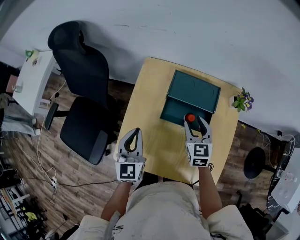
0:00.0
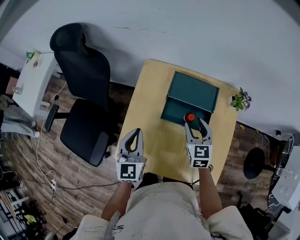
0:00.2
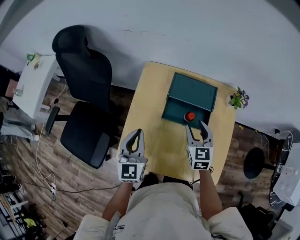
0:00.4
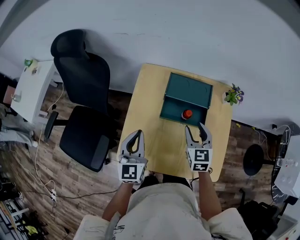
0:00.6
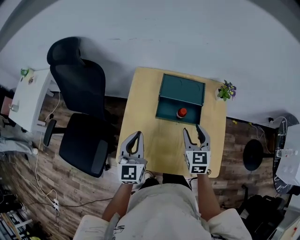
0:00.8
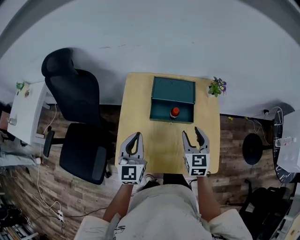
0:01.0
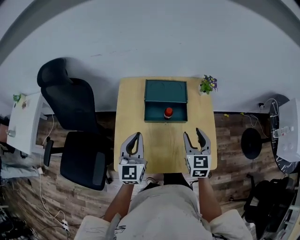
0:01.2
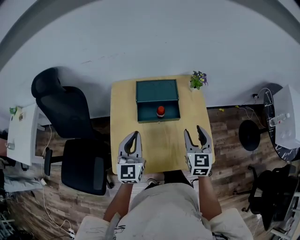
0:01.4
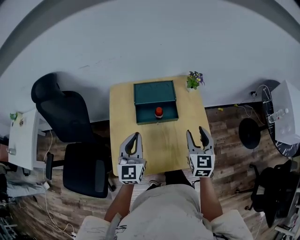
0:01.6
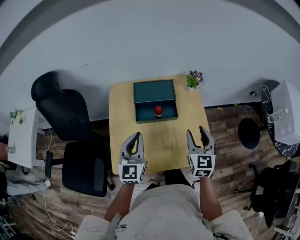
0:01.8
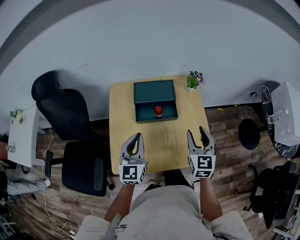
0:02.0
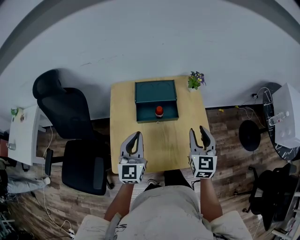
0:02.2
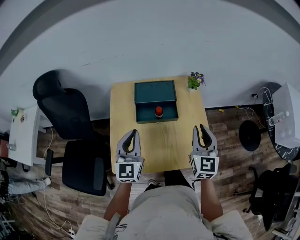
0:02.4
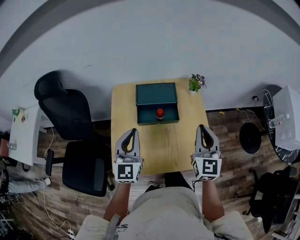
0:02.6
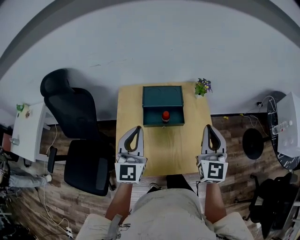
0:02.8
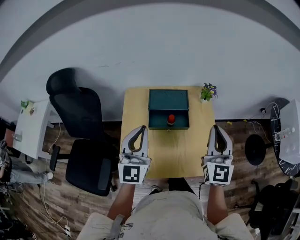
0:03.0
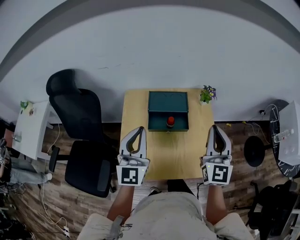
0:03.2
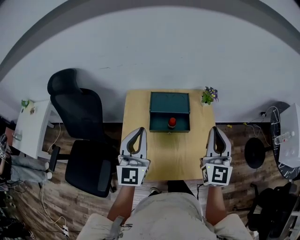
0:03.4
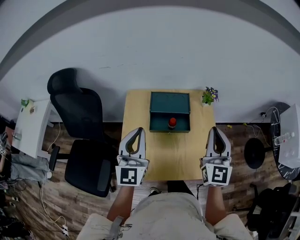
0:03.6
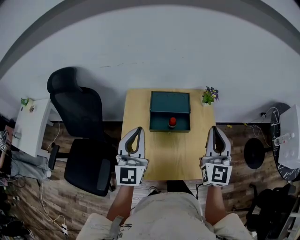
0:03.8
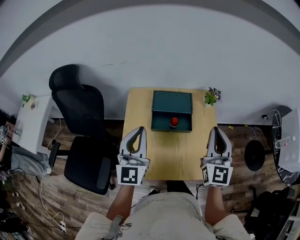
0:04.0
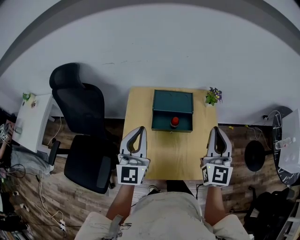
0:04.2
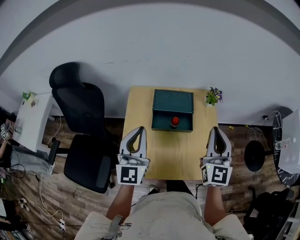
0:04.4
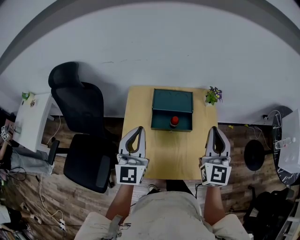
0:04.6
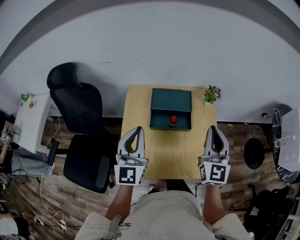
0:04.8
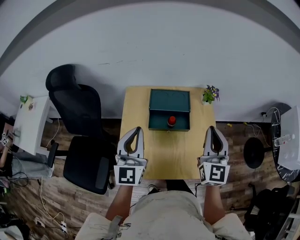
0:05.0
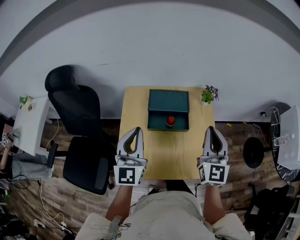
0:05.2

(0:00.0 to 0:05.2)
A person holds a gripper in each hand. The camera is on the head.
0:00.0 - 0:01.8: The left gripper moves some 15 cm, and changes its angle by roughly 30 degrees, while the right gripper shifts by approximately 25 cm, and changes its angle by about 30 degrees.
0:01.8 - 0:03.4: Both grippers move upward, approximately 15 cm. The right gripper swivels some 20 degrees, and closes up.
0:03.4 - 0:05.2: The grippers stay close to where they were, moving slightly.

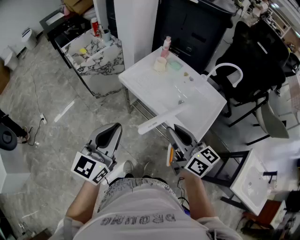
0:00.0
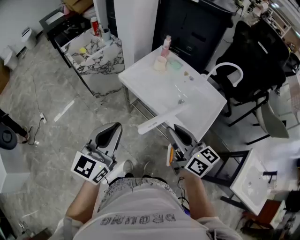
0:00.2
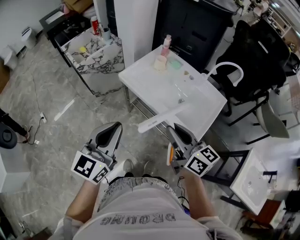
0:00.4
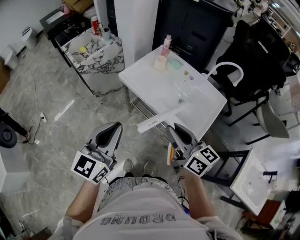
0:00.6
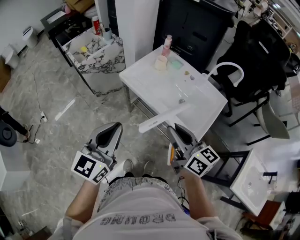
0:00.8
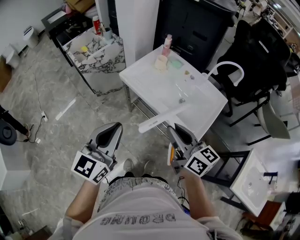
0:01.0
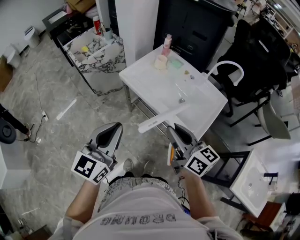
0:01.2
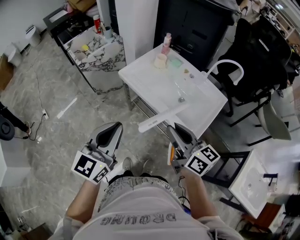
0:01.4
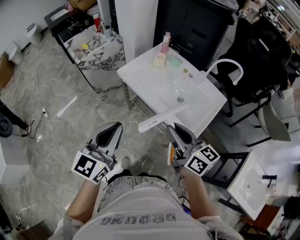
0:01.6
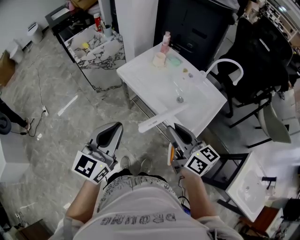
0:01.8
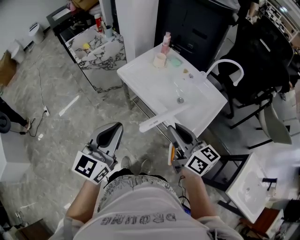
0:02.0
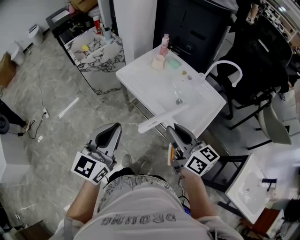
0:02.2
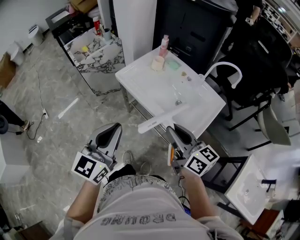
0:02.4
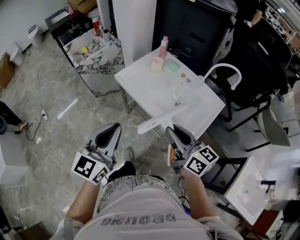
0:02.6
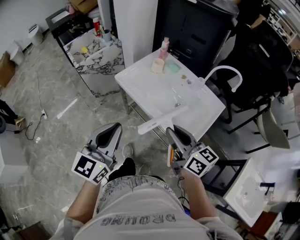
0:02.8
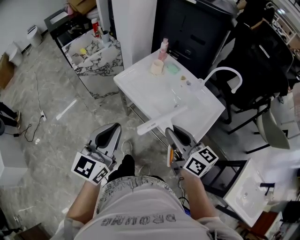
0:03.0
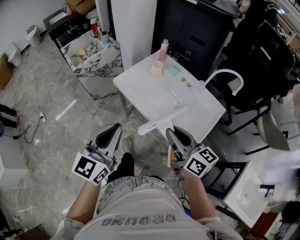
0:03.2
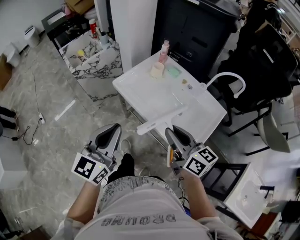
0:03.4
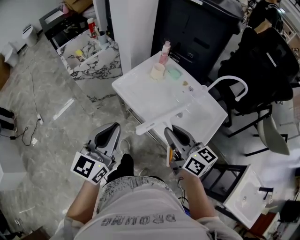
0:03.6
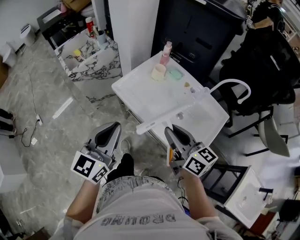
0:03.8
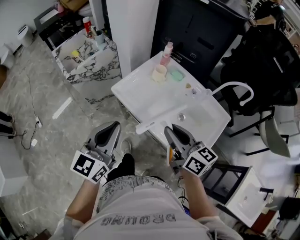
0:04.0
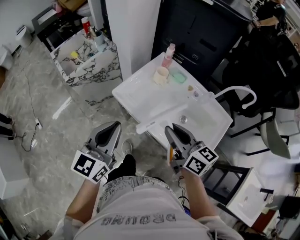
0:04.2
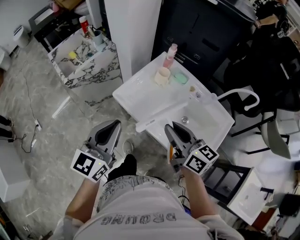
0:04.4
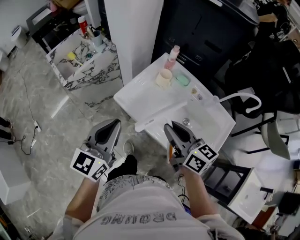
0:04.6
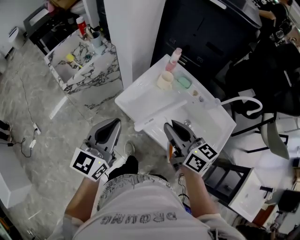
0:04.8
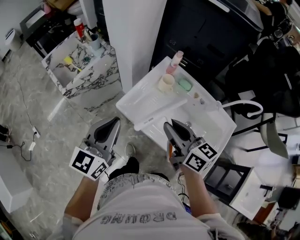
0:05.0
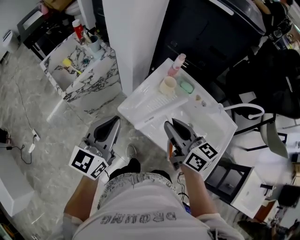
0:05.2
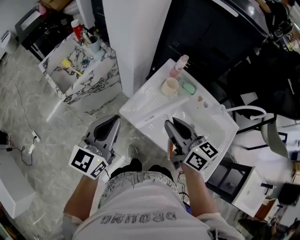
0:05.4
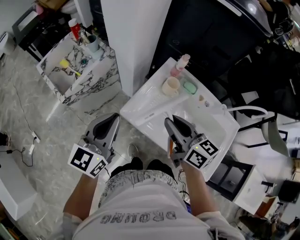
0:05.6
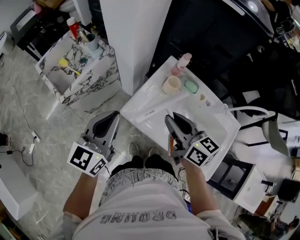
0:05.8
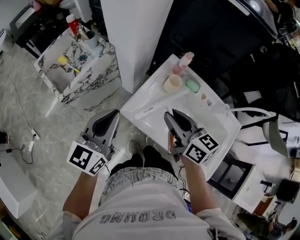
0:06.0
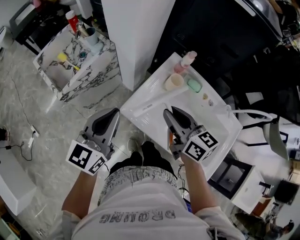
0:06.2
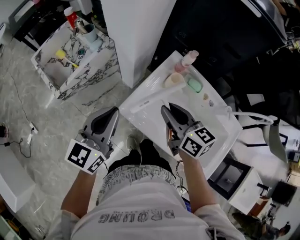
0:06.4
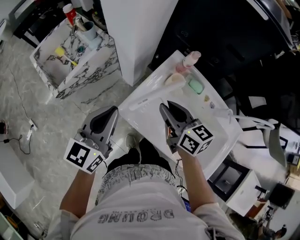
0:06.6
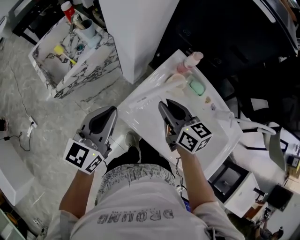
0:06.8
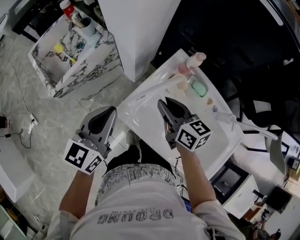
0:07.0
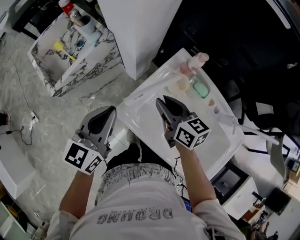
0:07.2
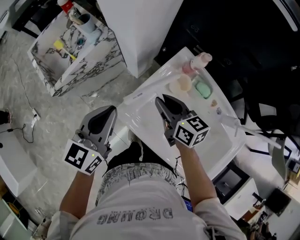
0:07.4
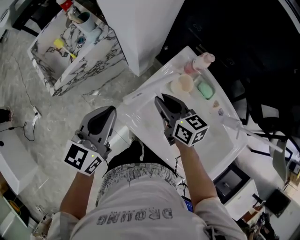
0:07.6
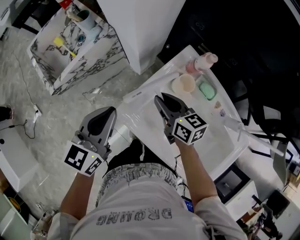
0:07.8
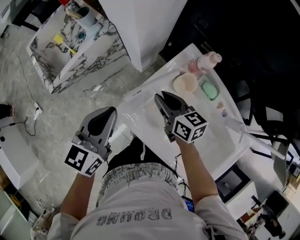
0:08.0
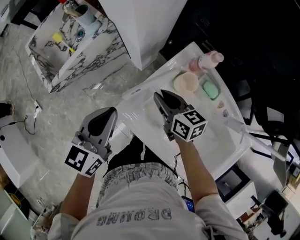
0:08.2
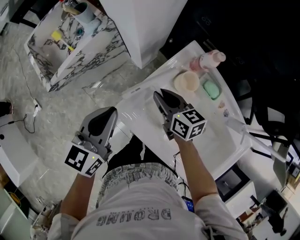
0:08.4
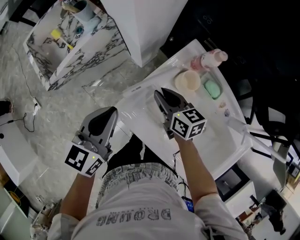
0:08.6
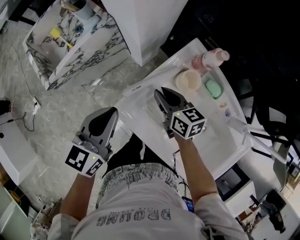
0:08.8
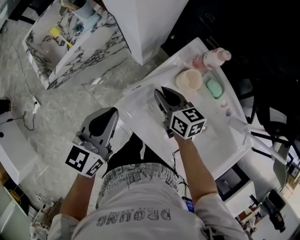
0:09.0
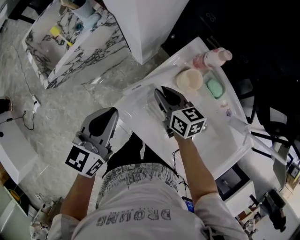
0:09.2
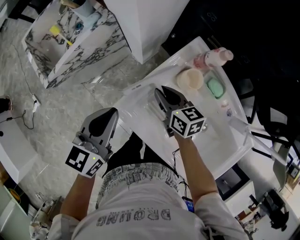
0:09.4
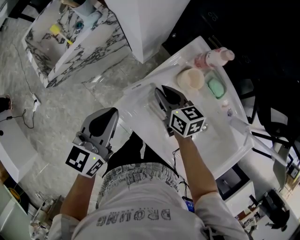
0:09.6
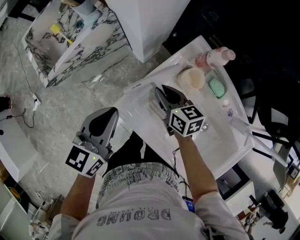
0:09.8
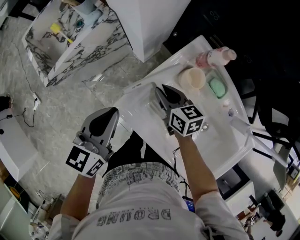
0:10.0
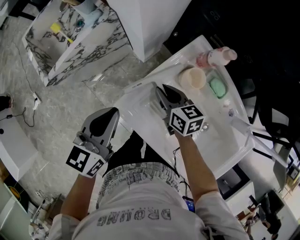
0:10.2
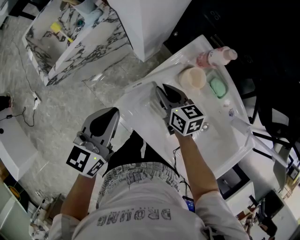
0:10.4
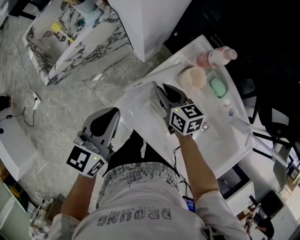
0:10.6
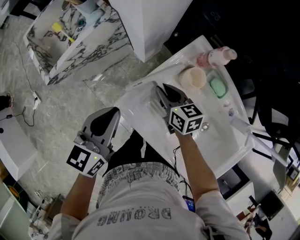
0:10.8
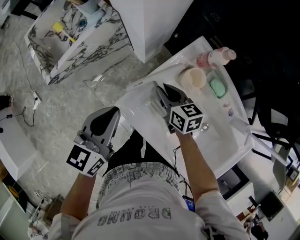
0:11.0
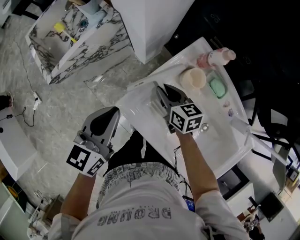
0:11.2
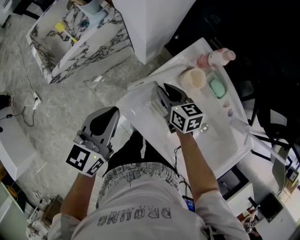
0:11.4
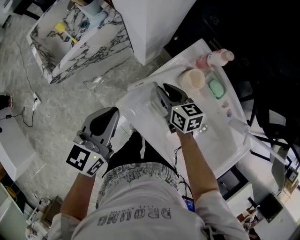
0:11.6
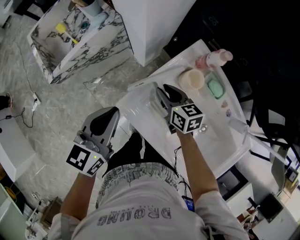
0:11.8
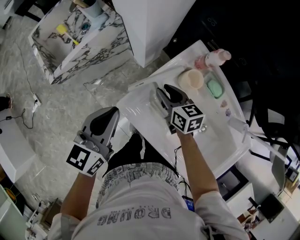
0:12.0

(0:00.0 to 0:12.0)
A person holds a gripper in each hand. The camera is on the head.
0:00.0 - 0:01.6: The grippers make only small movements.
0:01.6 - 0:03.0: The grippers make only small movements.
0:03.0 - 0:04.4: Both grippers move forward, approximately 20 cm.
0:04.4 - 0:06.0: Both grippers travel together forward and to the left, about 20 cm.
0:06.0 - 0:07.6: The right gripper is displaced downward and forward by about 20 cm. Meanwhile the left gripper heads downward and forward, covering some 10 cm.
0:07.6 - 0:09.0: The right gripper travels downward by roughly 5 cm.
0:09.0 - 0:12.0: The grippers stay close to where they were, moving slightly.

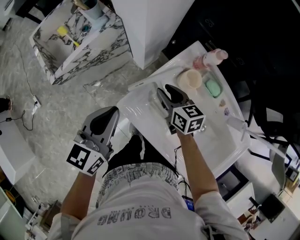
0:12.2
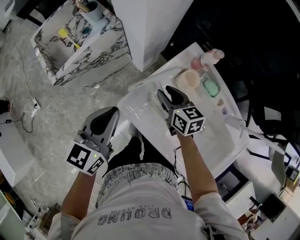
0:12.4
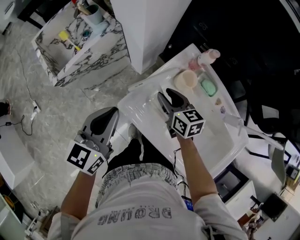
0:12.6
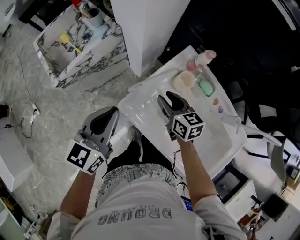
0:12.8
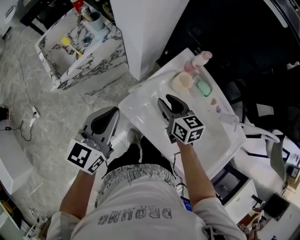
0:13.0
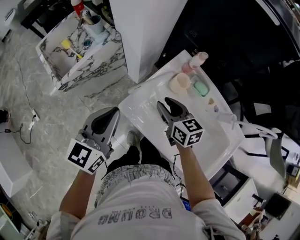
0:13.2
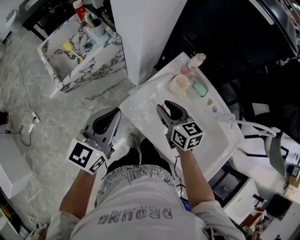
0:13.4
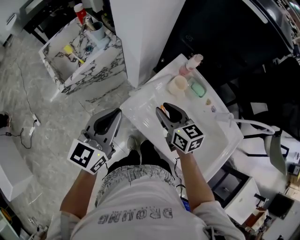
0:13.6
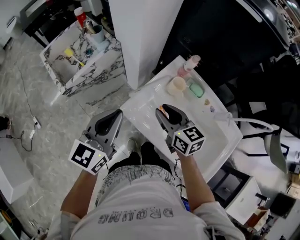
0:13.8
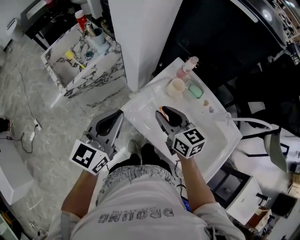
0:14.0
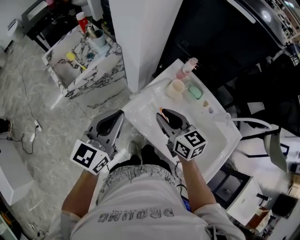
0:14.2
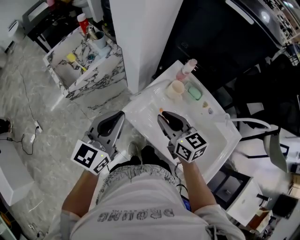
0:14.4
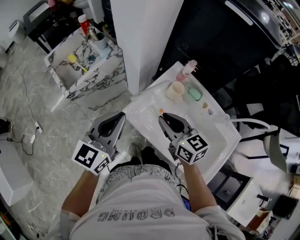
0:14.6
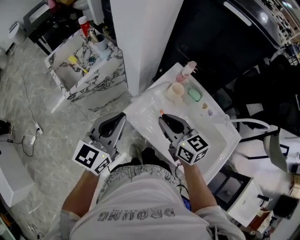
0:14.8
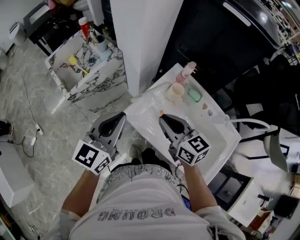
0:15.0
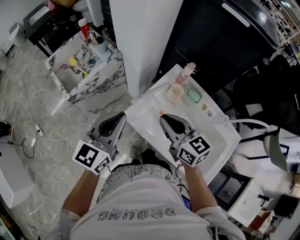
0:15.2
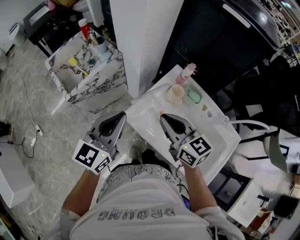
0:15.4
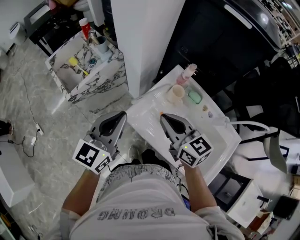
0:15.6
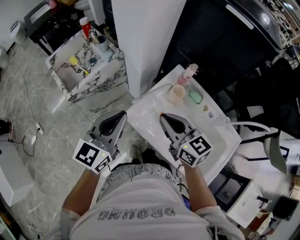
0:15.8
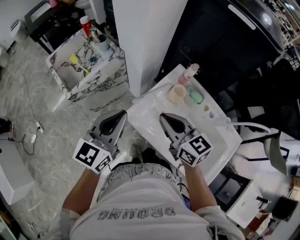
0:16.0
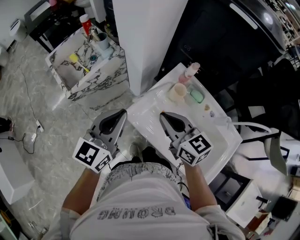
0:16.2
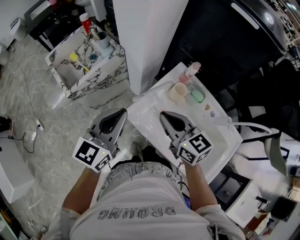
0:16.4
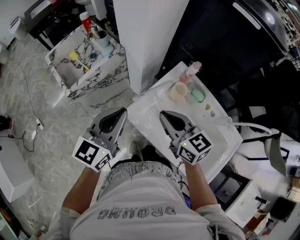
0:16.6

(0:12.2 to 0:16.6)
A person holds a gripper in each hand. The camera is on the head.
0:12.2 - 0:13.6: The right gripper travels upward and backward by some 15 cm; the left gripper is displaced upward by some 10 cm.
0:13.6 - 0:15.2: The right gripper travels upward by some 10 cm, and closes up.
0:15.2 - 0:16.6: There are only small adjustments of the grippers.

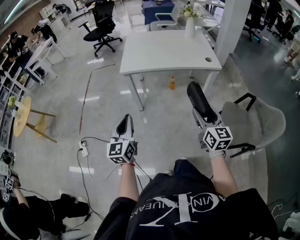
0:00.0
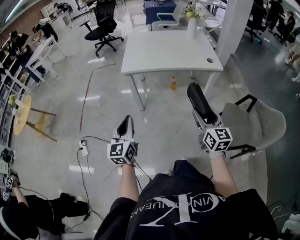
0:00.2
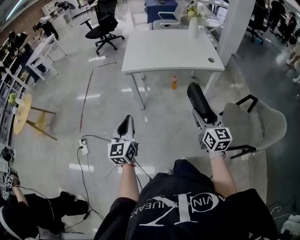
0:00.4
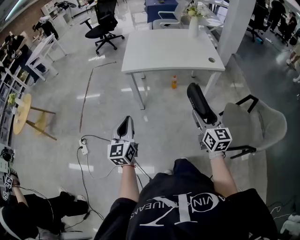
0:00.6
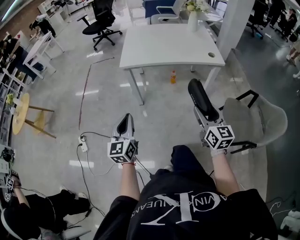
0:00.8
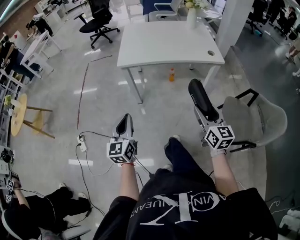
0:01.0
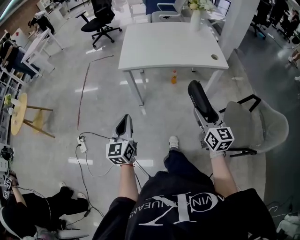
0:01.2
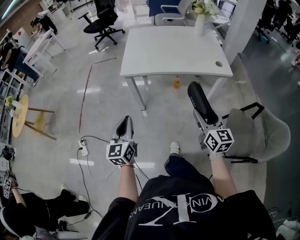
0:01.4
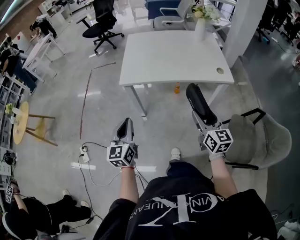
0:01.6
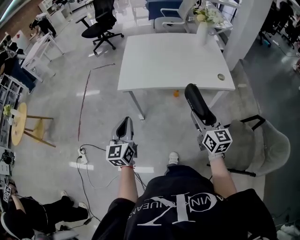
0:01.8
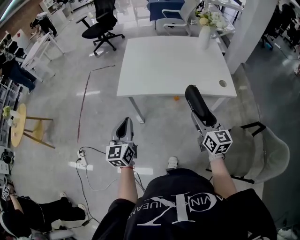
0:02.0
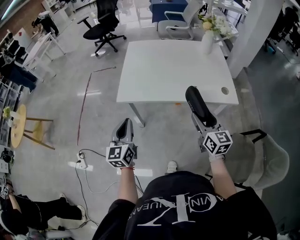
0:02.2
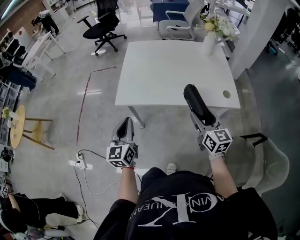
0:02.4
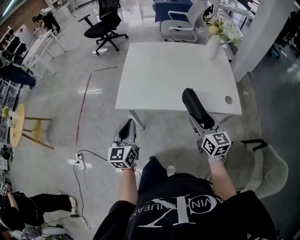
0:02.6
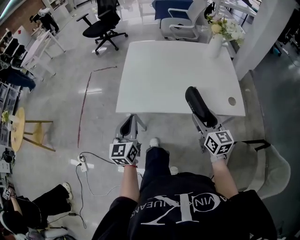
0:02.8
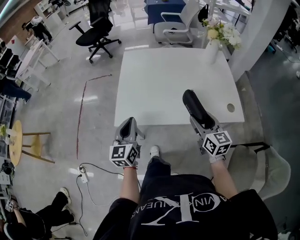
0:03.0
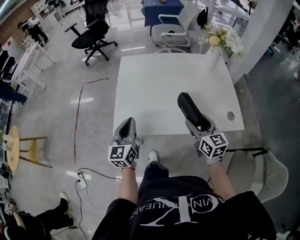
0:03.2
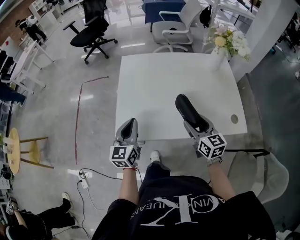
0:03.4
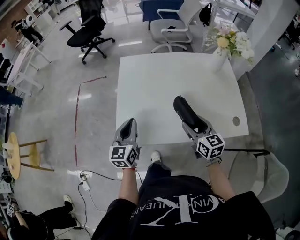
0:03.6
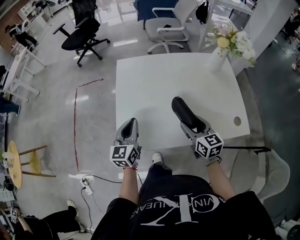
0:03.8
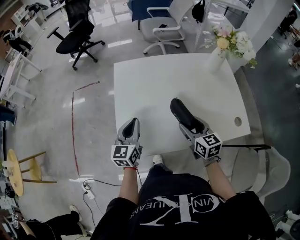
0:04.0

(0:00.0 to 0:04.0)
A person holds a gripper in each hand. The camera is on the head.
0:00.0 - 0:01.4: Both grippers travel together forward, some 10 cm.
0:01.4 - 0:02.6: The grippers both shift forward by about 25 cm.
0:02.6 - 0:04.0: The two grippers go some 25 cm forward.
